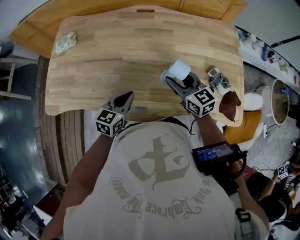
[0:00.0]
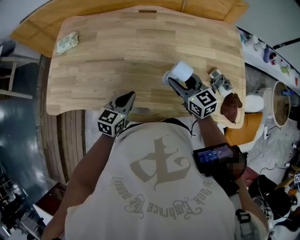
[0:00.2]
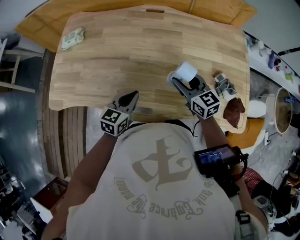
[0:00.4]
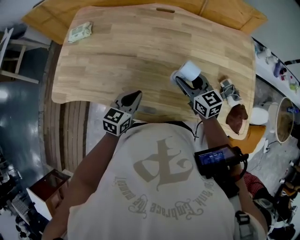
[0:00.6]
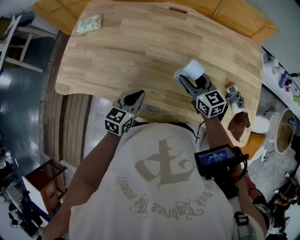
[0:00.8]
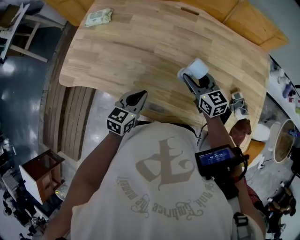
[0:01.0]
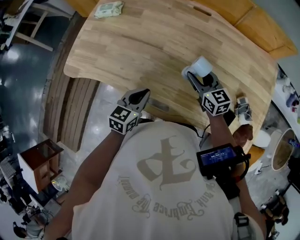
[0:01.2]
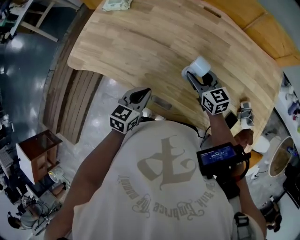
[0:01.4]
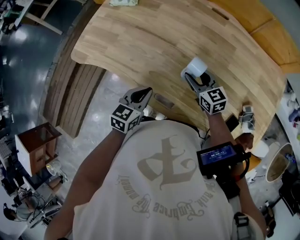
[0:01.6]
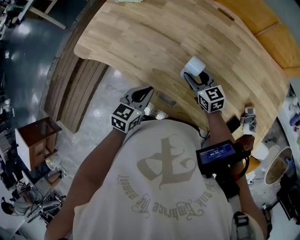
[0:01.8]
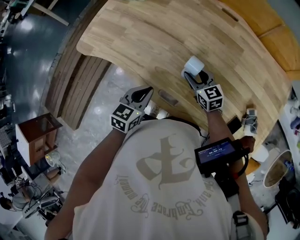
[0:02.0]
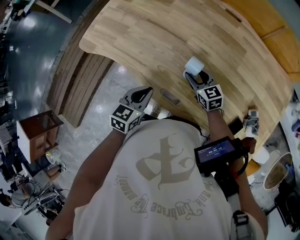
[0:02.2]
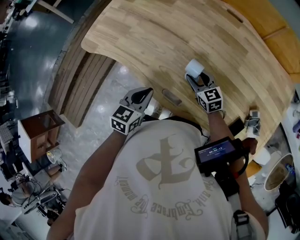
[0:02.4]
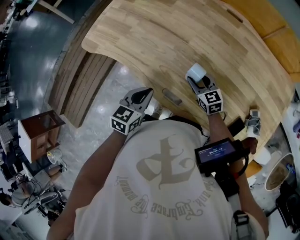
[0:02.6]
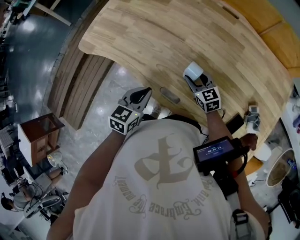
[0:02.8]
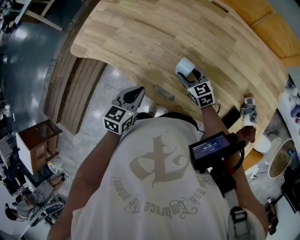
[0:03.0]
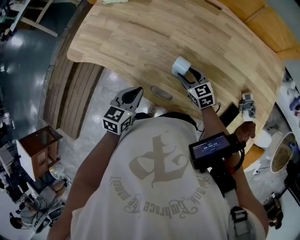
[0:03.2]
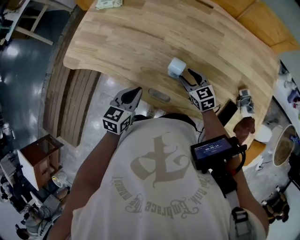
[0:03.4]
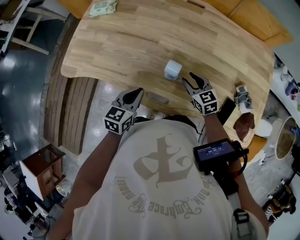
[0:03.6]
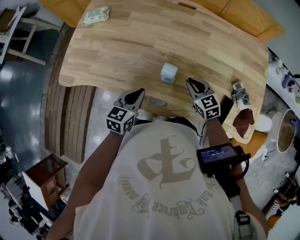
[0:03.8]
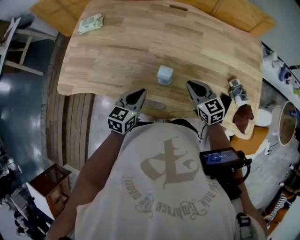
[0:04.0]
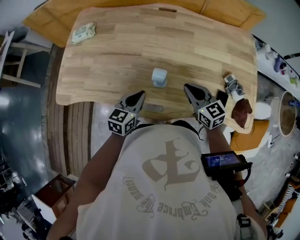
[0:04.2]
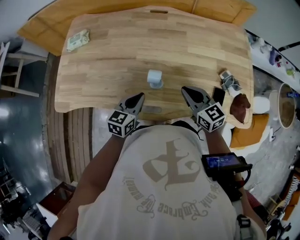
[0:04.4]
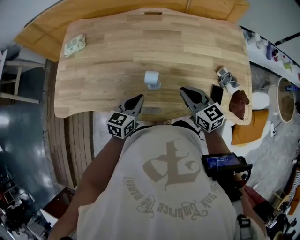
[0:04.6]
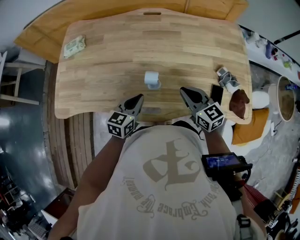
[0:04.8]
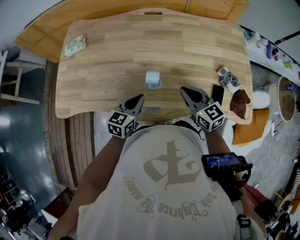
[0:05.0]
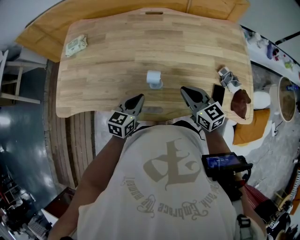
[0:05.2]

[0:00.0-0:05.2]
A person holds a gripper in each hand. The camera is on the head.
0:00.0 to 0:01.8: The left gripper goes about 10 cm to the left, and rotates roughly 20 degrees, while the right gripper moves to the left and downward, roughly 15 cm, and rotates roughly 20 degrees.
0:01.8 to 0:03.4: The right gripper shifts roughly 5 cm backward.
0:03.4 to 0:05.2: The right gripper travels upward, backward and to the right by about 15 cm, rotates about 30 degrees, and closes its fingers, while the left gripper goes approximately 5 cm to the right, and rotates about 20 degrees.

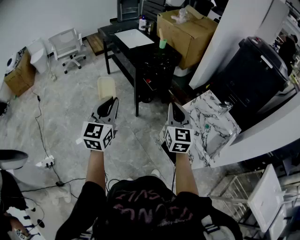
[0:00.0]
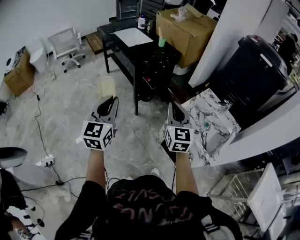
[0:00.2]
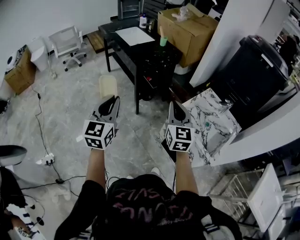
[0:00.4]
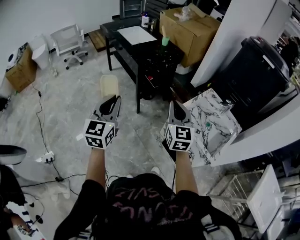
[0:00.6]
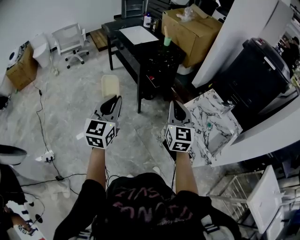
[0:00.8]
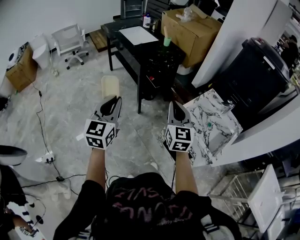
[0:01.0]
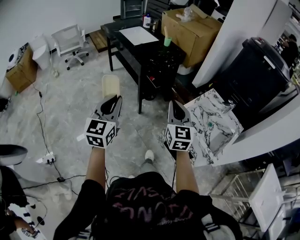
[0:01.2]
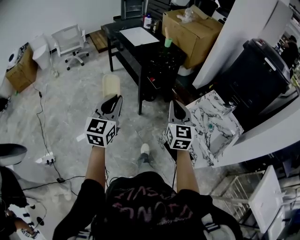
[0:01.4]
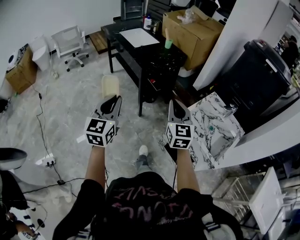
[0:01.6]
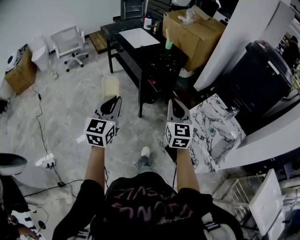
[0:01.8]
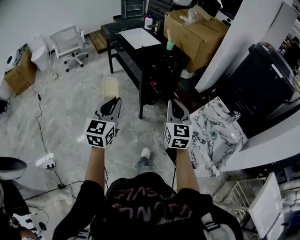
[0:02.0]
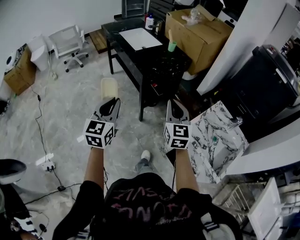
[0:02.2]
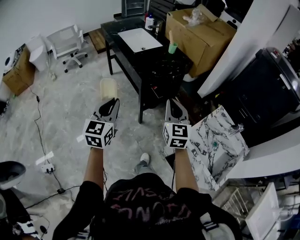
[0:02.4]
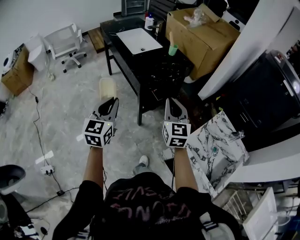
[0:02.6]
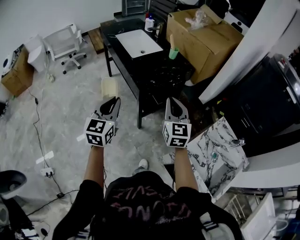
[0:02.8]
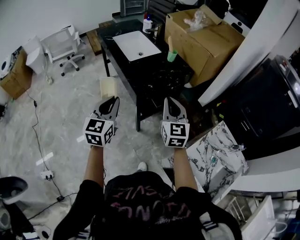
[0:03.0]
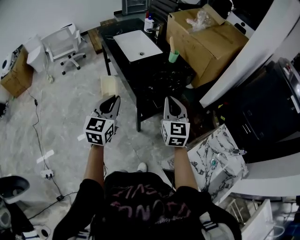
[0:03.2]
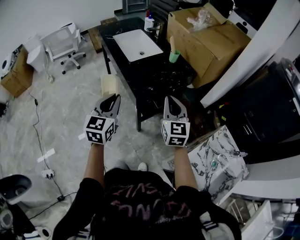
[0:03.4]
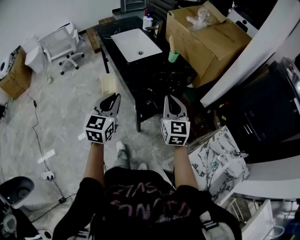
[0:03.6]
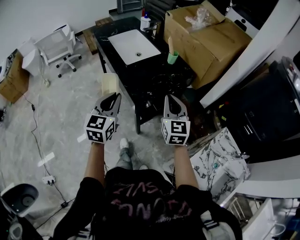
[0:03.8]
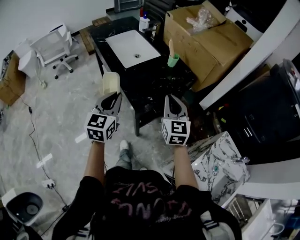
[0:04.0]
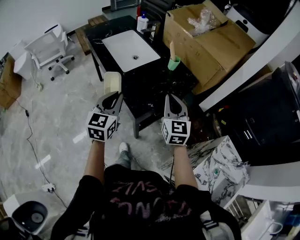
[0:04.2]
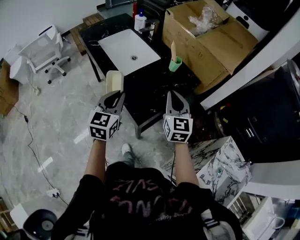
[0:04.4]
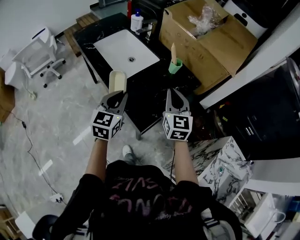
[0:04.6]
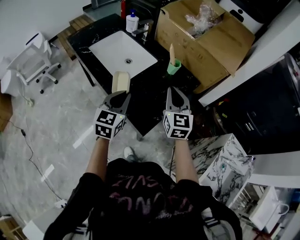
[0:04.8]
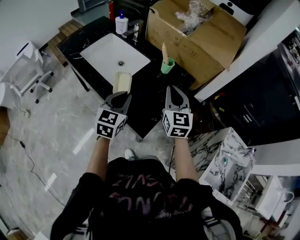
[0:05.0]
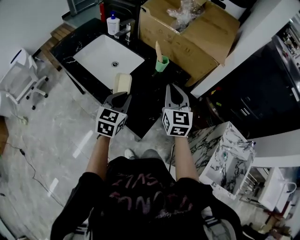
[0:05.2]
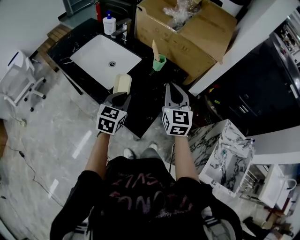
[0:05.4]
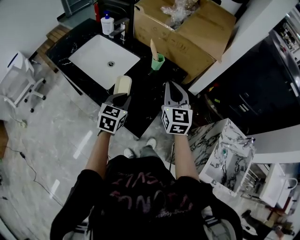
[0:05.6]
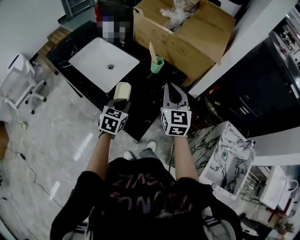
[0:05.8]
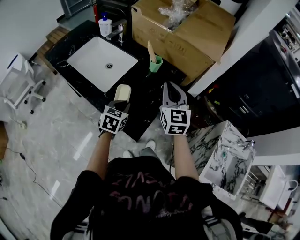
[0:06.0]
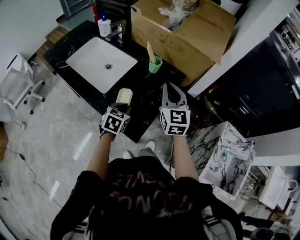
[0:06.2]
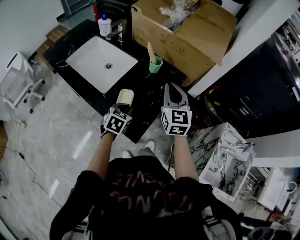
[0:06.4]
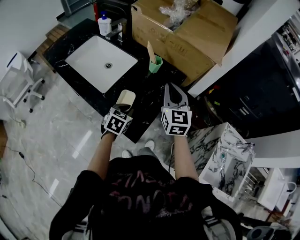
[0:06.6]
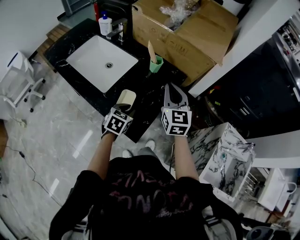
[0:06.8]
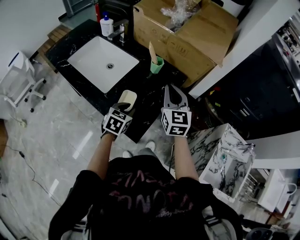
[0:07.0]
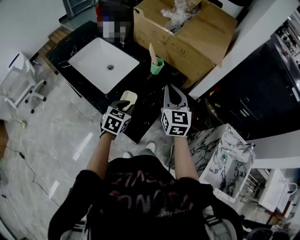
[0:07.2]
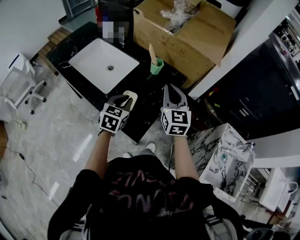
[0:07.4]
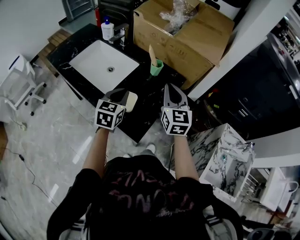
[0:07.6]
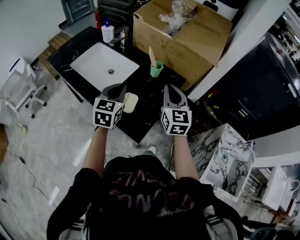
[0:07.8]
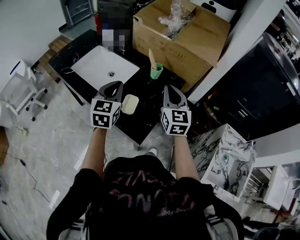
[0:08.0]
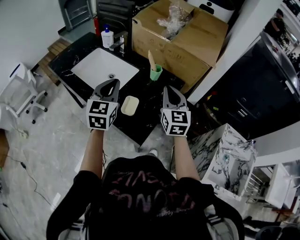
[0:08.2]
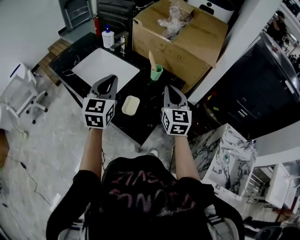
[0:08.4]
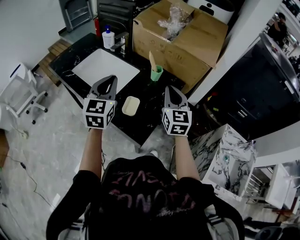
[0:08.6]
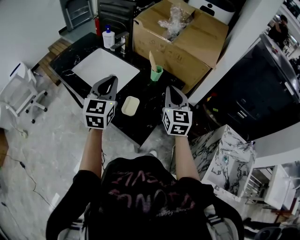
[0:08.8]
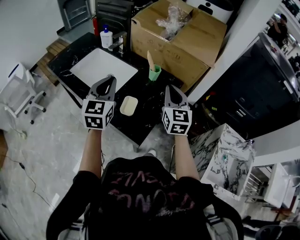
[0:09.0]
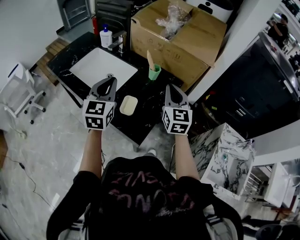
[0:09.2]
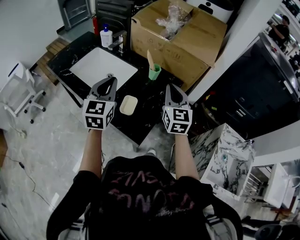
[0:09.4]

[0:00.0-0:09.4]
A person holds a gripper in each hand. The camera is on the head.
0:00.0 to 0:01.6: The right gripper ends up approximately 5 cm from where it was.
0:01.6 to 0:03.2: The grippers both shift forward by approximately 35 cm.
0:03.2 to 0:04.8: The two grippers go about 30 cm forward. The left gripper changes its angle by about 20 degrees.
0:04.8 to 0:06.2: The left gripper moves downward, to the right and forward, about 15 cm, and swivels approximately 30 degrees. Meanwhile the right gripper changes place by some 5 cm.
0:06.2 to 0:07.8: The left gripper shifts about 15 cm upward, and changes its angle by roughly 30 degrees.
0:07.8 to 0:09.4: The left gripper shifts approximately 5 cm upward.

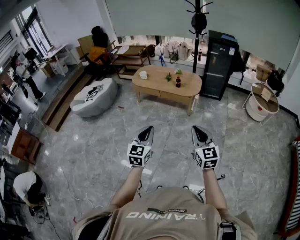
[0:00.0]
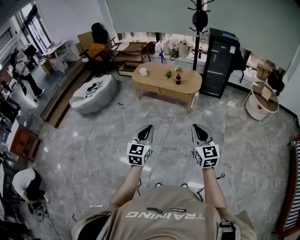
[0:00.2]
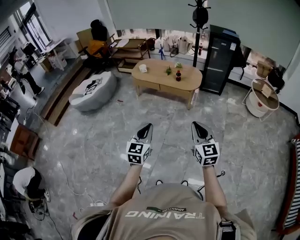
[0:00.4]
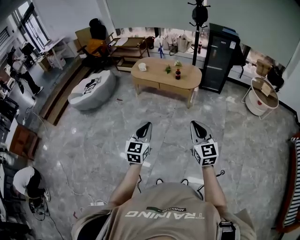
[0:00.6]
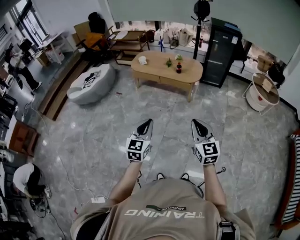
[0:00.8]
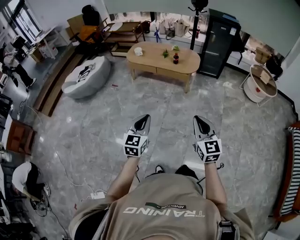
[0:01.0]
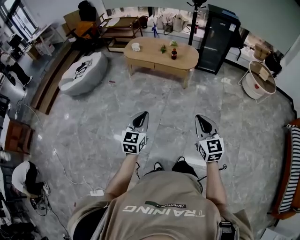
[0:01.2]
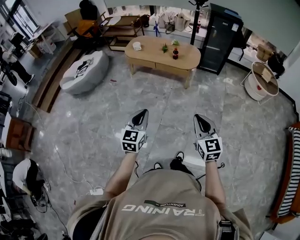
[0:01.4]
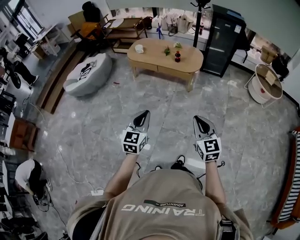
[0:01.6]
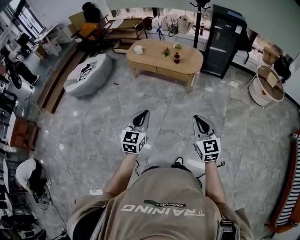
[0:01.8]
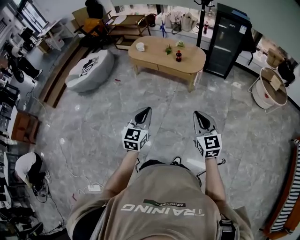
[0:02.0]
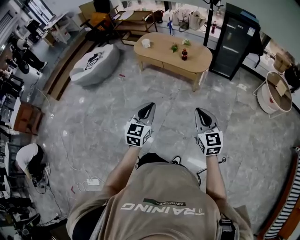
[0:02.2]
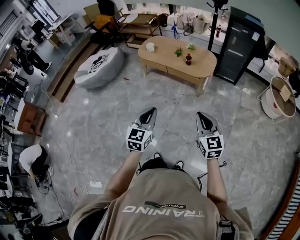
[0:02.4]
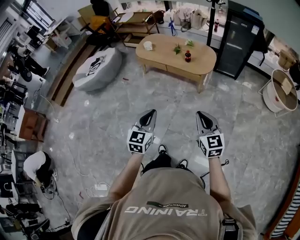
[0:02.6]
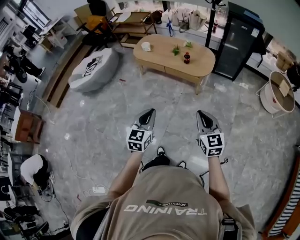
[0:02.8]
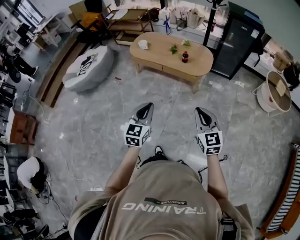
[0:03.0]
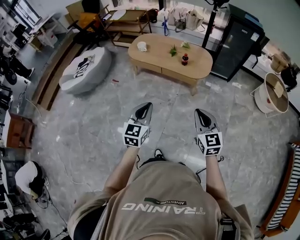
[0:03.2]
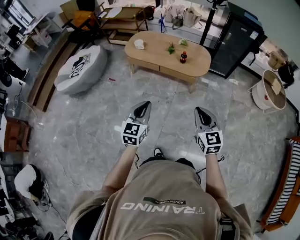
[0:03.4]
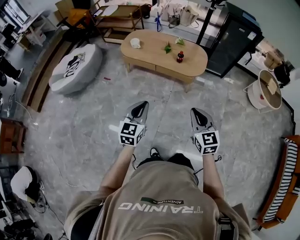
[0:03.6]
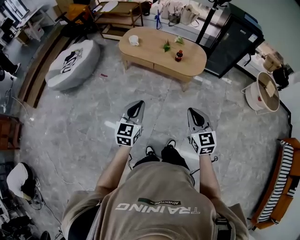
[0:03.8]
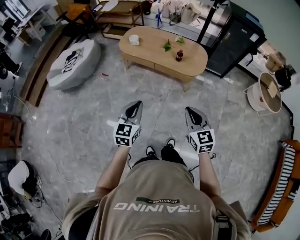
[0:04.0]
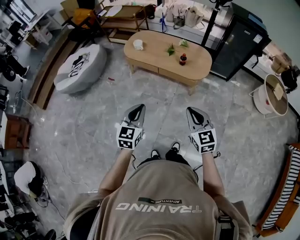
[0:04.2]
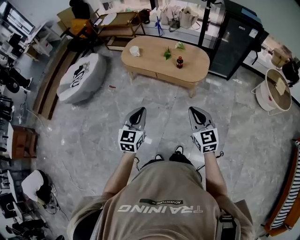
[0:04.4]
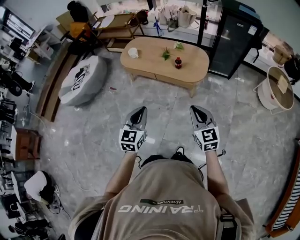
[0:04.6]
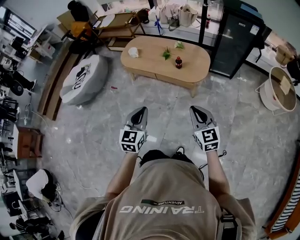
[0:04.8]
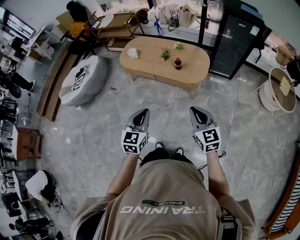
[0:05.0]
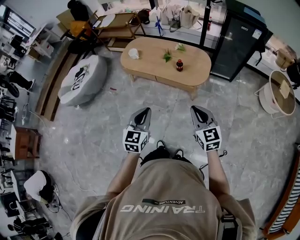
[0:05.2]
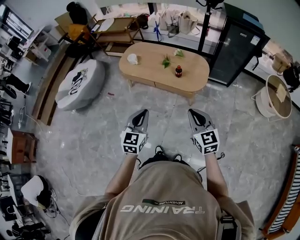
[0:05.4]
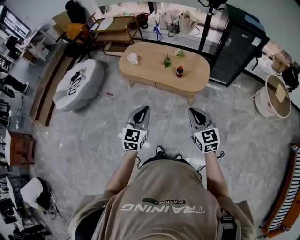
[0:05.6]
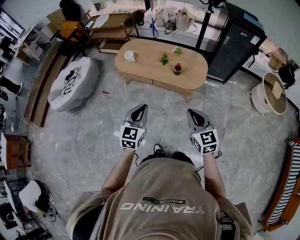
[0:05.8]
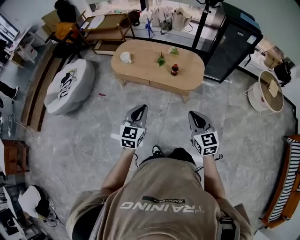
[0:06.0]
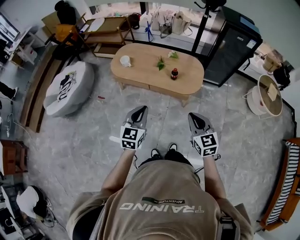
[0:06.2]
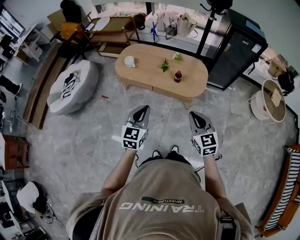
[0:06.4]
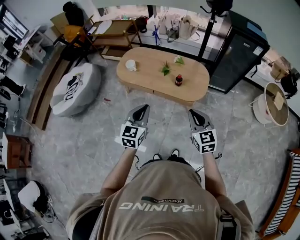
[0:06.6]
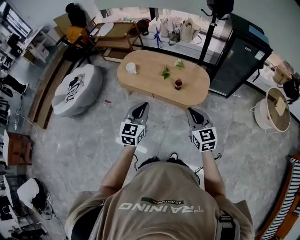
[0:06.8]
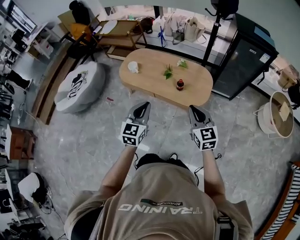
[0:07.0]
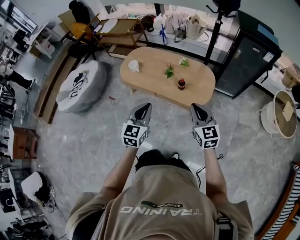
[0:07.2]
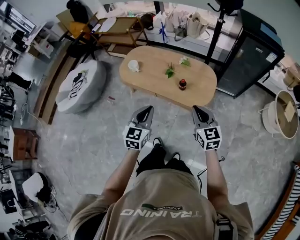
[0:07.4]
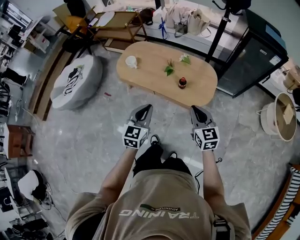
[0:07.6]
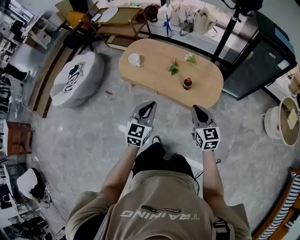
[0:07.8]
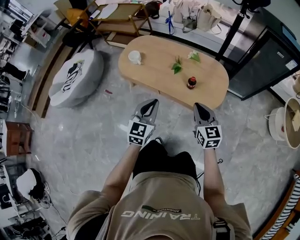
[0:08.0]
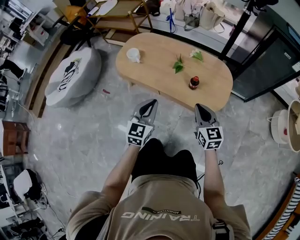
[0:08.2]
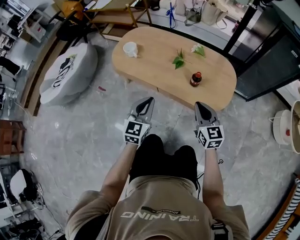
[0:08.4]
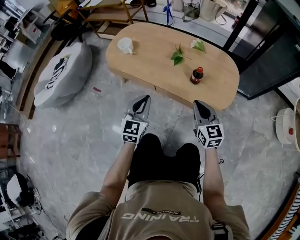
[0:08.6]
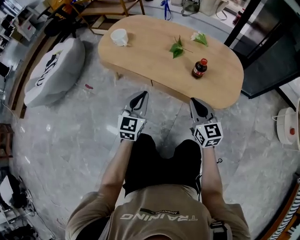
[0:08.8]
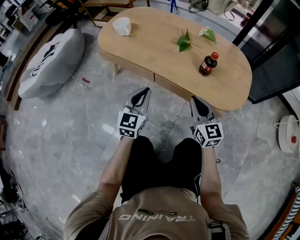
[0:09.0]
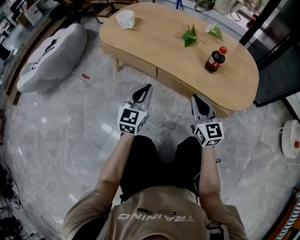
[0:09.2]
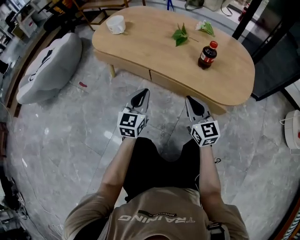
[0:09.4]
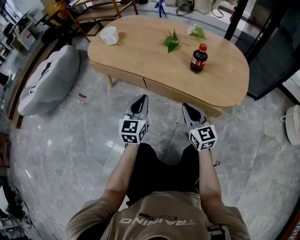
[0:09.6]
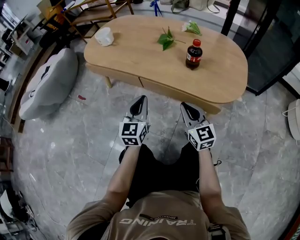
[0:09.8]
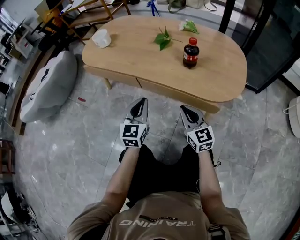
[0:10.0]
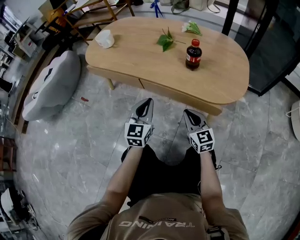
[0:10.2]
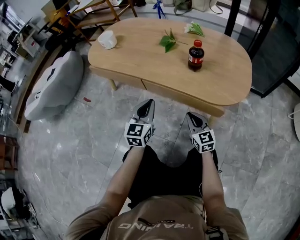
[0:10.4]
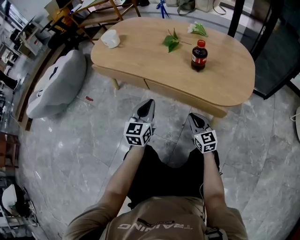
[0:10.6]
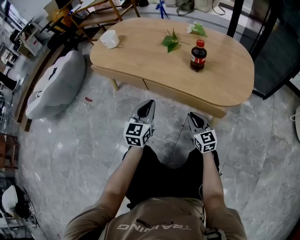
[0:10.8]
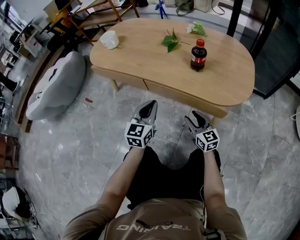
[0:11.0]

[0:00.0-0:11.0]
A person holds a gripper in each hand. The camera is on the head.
0:00.0 to 0:01.6: The right gripper travels downward by roughly 5 cm. Meanwhile the left gripper moves roughly 5 cm.
0:01.6 to 0:03.2: Both grippers move forward, approximately 20 cm.
0:03.2 to 0:04.8: Both grippers travel together forward and to the right, roughly 15 cm.
0:04.8 to 0:06.2: The two grippers go some 10 cm forward and to the left.
0:06.2 to 0:07.8: The two grippers go about 20 cm forward and downward.
0:07.8 to 0:09.4: The grippers both shift downward by about 40 cm.
0:09.4 to 0:11.0: The right gripper travels downward by approximately 15 cm, and opens. Meanwhile the left gripper moves to the right, approximately 5 cm.
